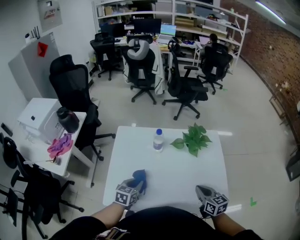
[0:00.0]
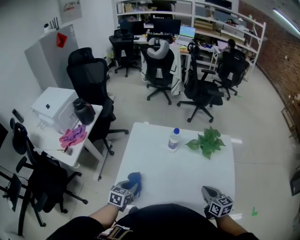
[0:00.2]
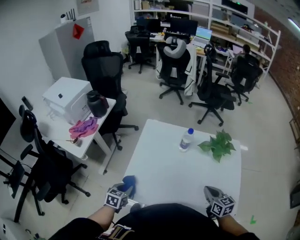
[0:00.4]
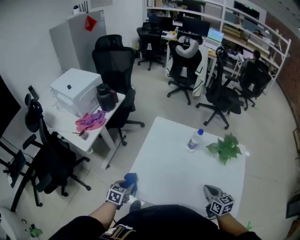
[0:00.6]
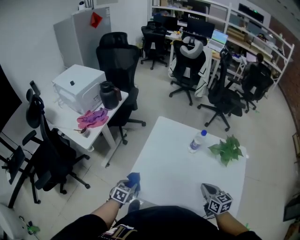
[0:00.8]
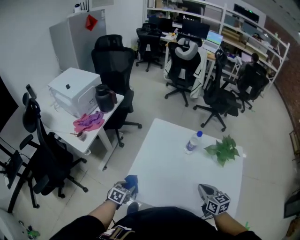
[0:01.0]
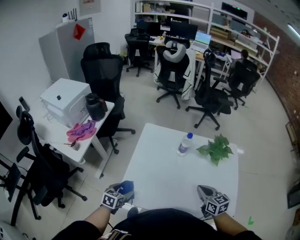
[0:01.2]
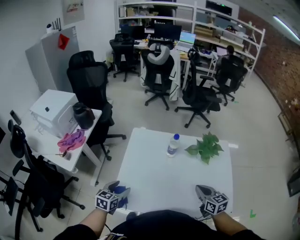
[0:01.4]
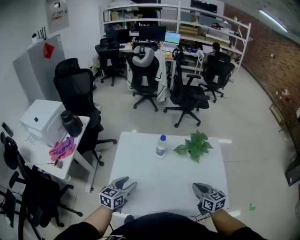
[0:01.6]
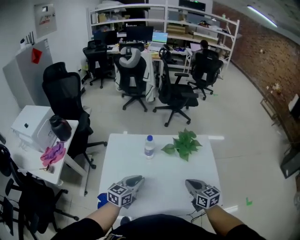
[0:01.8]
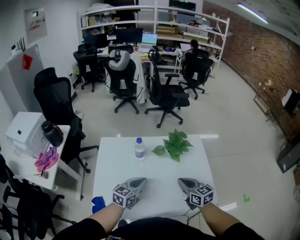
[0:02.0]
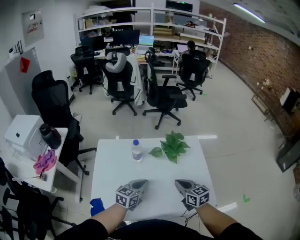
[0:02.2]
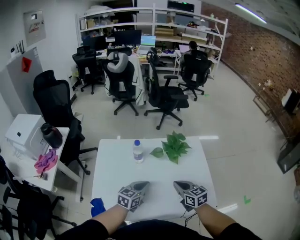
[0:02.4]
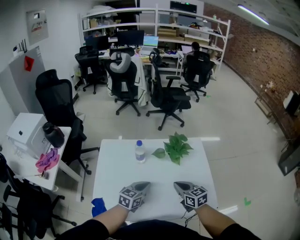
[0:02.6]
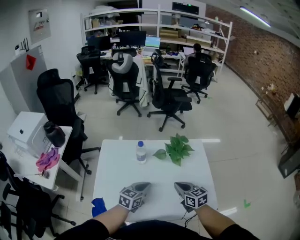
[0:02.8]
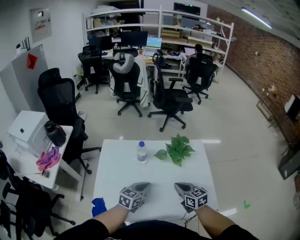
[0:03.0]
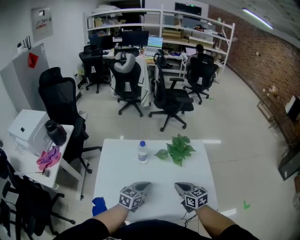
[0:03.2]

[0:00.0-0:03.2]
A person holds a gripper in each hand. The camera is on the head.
0:00.0 to 0:01.6: The right gripper moves roughly 15 cm to the left and comes back. The left gripper travels upward by about 5 cm, moves some 20 cm to the left and comes back, and opens its fingers.
0:01.6 to 0:03.2: The left gripper heads to the right, covering some 20 cm, and closes.

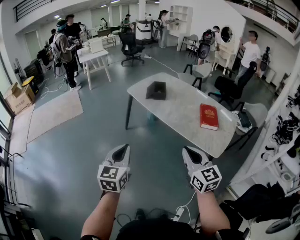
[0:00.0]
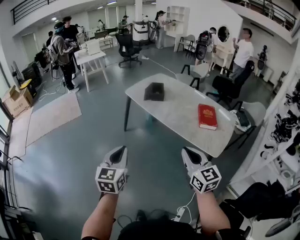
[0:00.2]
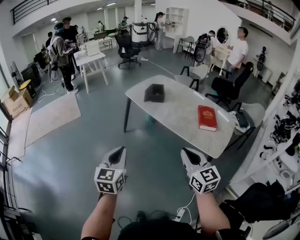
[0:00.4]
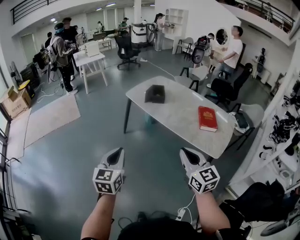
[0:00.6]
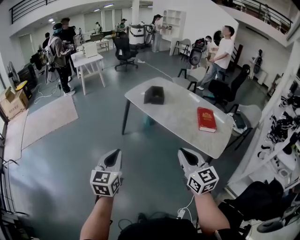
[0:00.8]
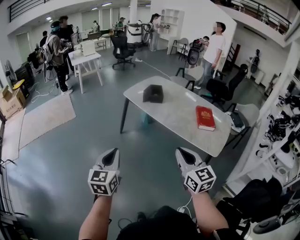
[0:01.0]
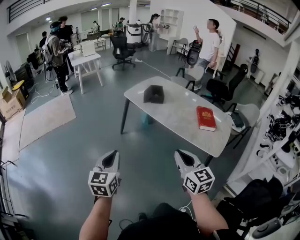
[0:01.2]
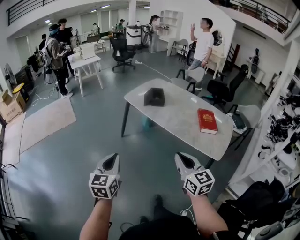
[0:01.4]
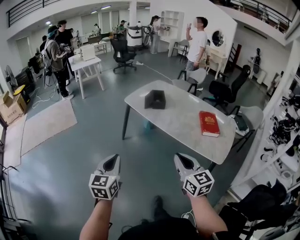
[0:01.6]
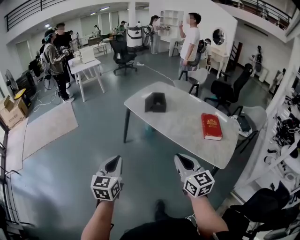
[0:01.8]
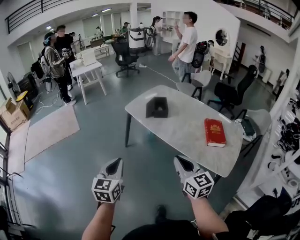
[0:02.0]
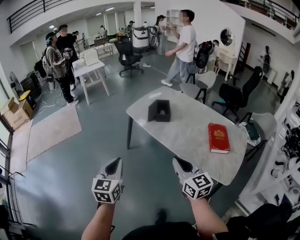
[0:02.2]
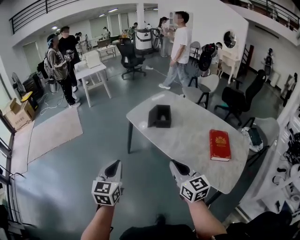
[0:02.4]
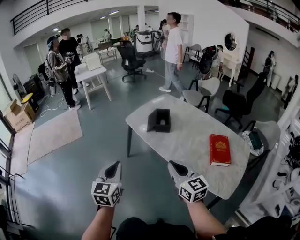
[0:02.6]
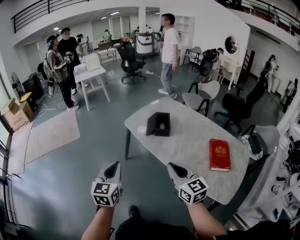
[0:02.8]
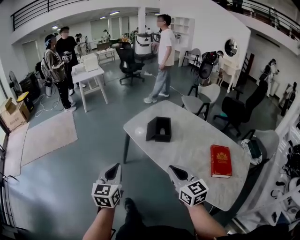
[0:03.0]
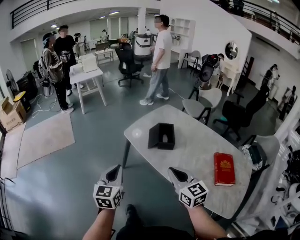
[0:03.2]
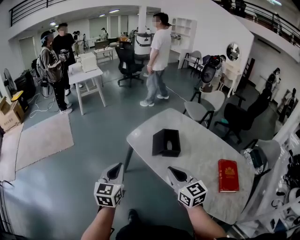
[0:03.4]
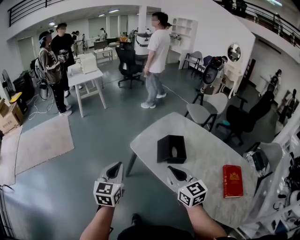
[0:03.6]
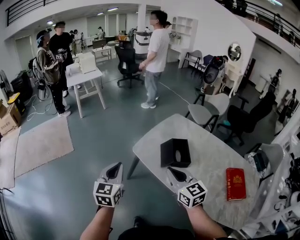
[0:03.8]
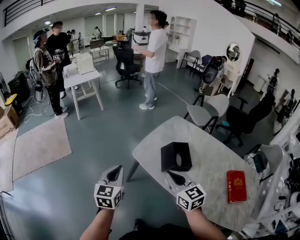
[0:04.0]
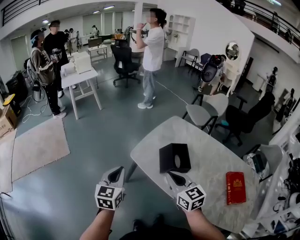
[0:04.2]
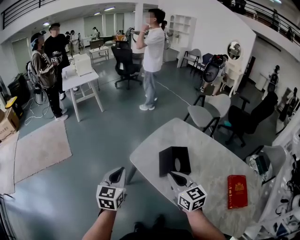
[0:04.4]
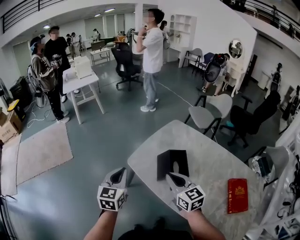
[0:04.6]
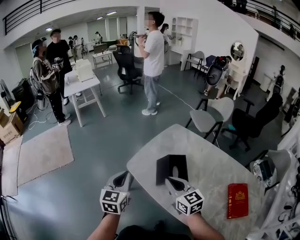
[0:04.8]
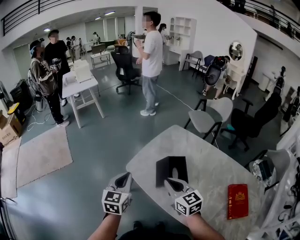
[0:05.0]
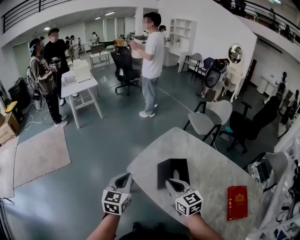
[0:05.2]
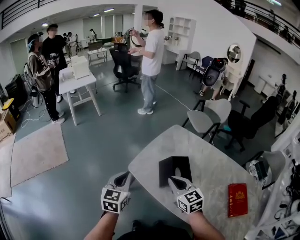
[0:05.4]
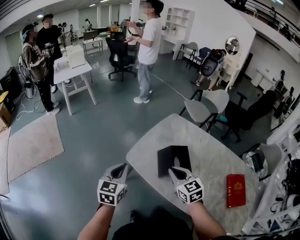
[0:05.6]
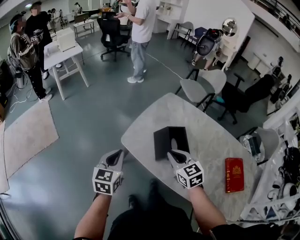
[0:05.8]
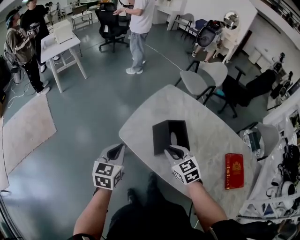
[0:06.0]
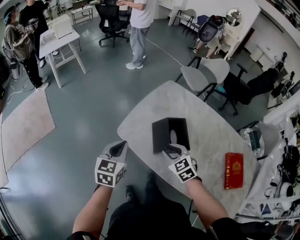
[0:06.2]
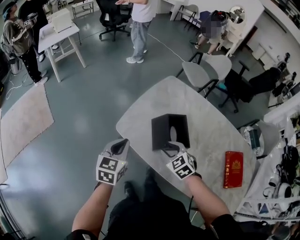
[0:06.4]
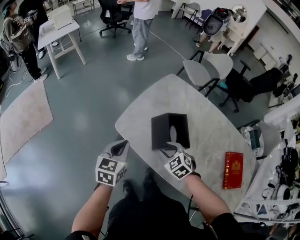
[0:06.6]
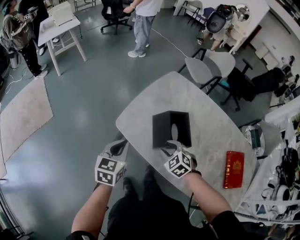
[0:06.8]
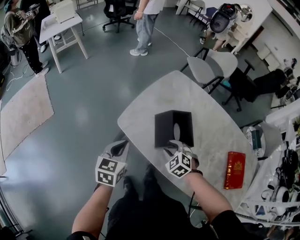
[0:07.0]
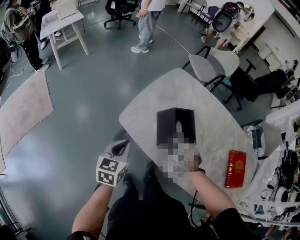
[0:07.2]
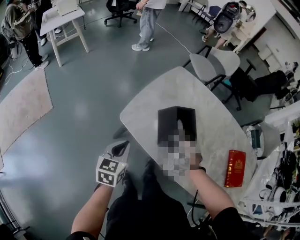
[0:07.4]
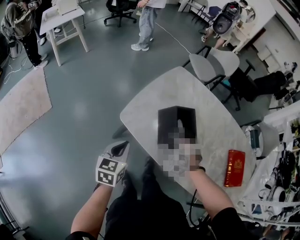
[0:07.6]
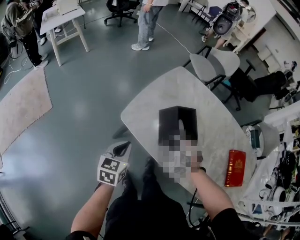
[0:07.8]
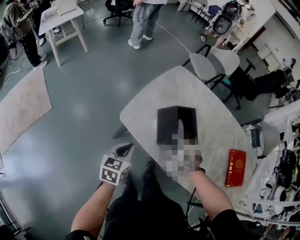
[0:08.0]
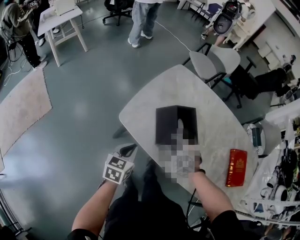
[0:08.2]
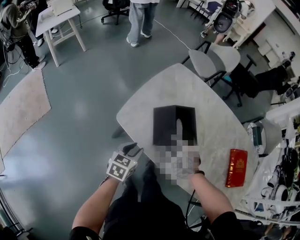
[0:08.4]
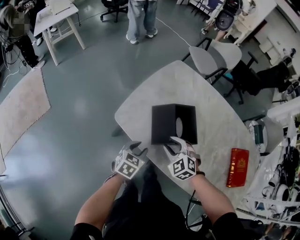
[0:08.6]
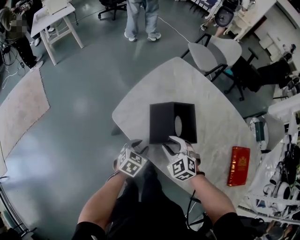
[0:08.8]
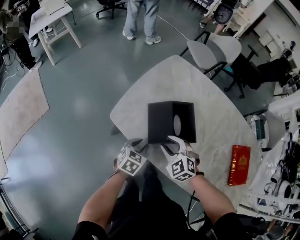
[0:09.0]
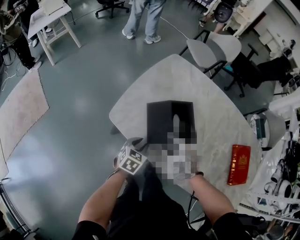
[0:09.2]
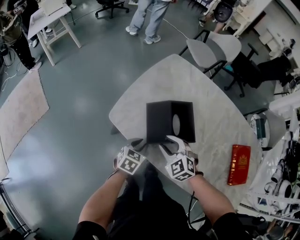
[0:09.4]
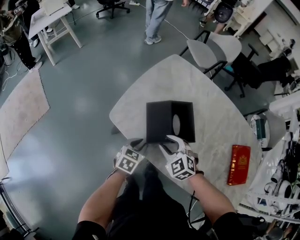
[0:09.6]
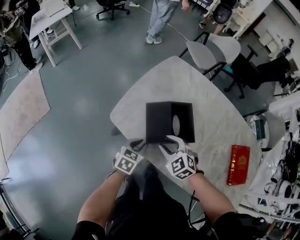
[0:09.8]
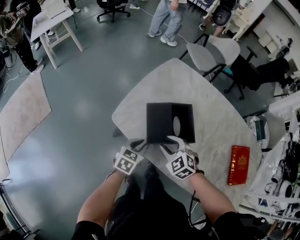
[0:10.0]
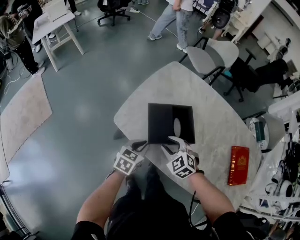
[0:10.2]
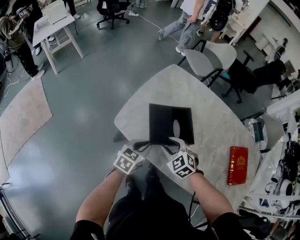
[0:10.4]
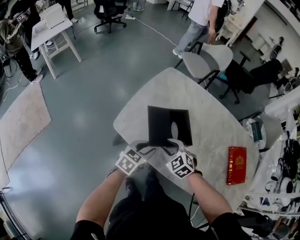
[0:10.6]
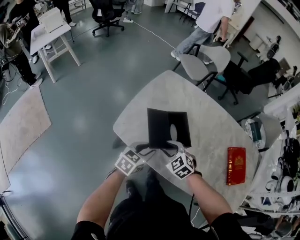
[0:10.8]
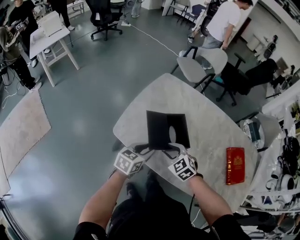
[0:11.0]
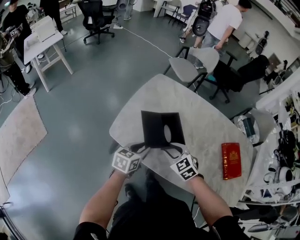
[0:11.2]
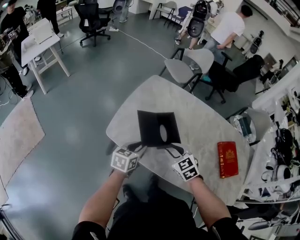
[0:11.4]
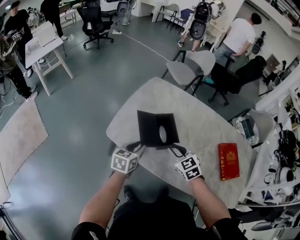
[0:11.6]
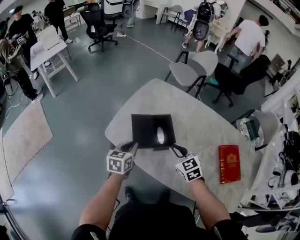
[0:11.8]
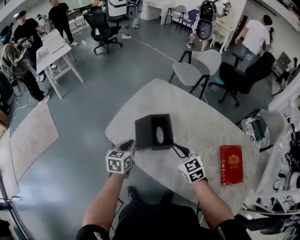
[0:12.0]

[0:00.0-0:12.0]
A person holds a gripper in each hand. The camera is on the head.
0:00.0 to 0:01.6: The grippers both shift to the left and forward by some 10 cm.
0:01.6 to 0:03.0: The two grippers go about 30 cm forward.
0:03.0 to 0:04.4: The two grippers go some 35 cm forward.
0:04.4 to 0:06.0: The left gripper moves forward and downward, some 15 cm. The right gripper heads downward and forward, covering about 15 cm, and changes its angle by about 20 degrees.
0:06.0 to 0:07.6: The left gripper moves downward, approximately 10 cm. The right gripper shifts approximately 15 cm downward, rotates around the line of its fingers by about 50 degrees, counterclockwise from behind, and opens up.
0:07.6 to 0:09.0: The right gripper swivels approximately 30 degrees, while the left gripper goes roughly 20 cm downward, to the right and forward, changes its angle by some 30 degrees, and opens its fingers.
0:09.0 to 0:10.4: The left gripper is displaced upward by some 10 cm, and closes up.
0:10.4 to 0:12.0: The left gripper is displaced upward by some 10 cm, swivels roughly 30 degrees, and opens and closes again. The right gripper heads to the right and upward, covering approximately 20 cm, rotates some 30 degrees, and closes its fingers.

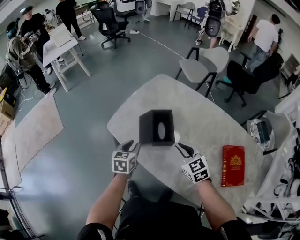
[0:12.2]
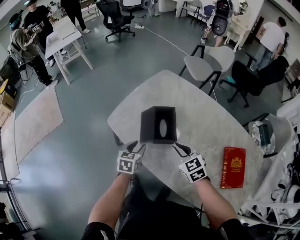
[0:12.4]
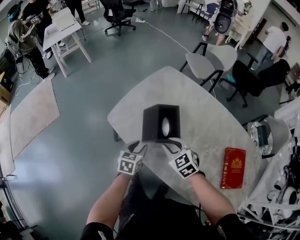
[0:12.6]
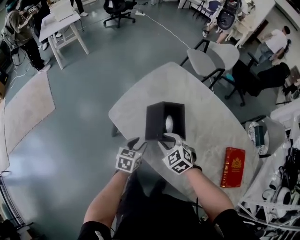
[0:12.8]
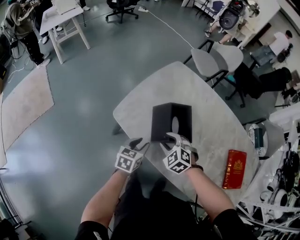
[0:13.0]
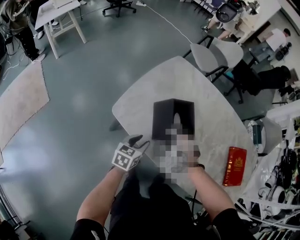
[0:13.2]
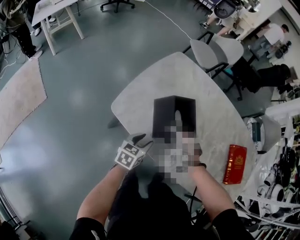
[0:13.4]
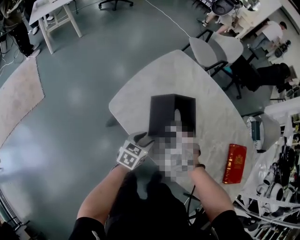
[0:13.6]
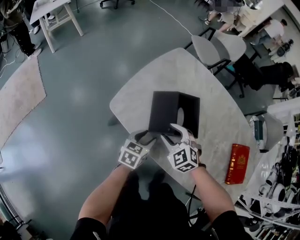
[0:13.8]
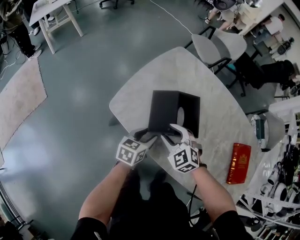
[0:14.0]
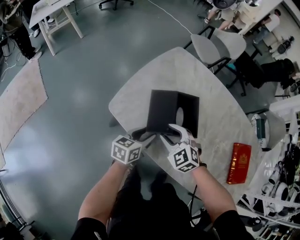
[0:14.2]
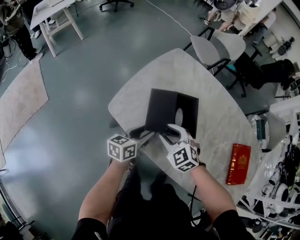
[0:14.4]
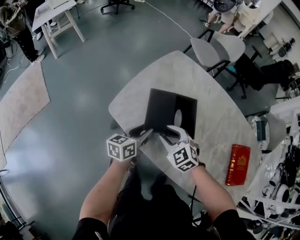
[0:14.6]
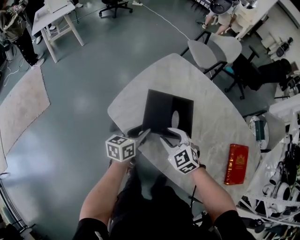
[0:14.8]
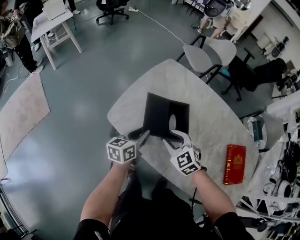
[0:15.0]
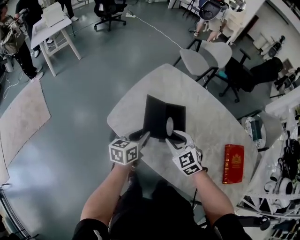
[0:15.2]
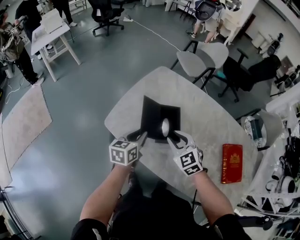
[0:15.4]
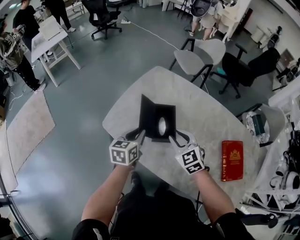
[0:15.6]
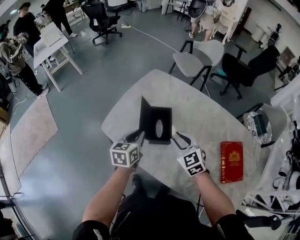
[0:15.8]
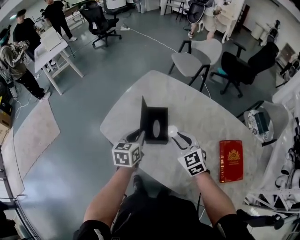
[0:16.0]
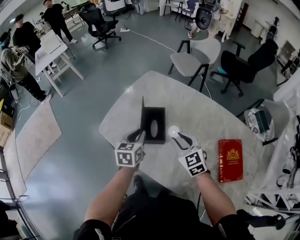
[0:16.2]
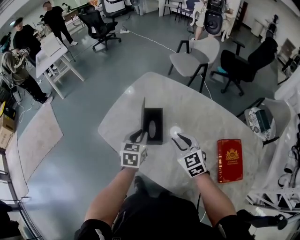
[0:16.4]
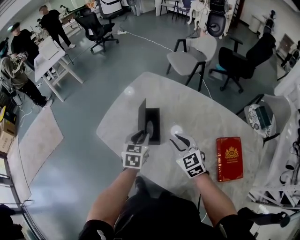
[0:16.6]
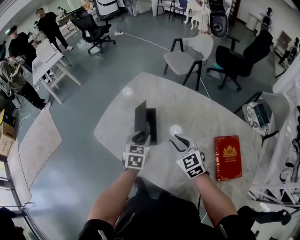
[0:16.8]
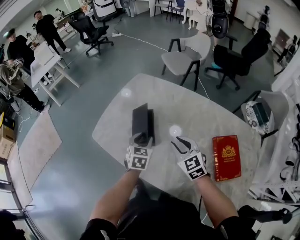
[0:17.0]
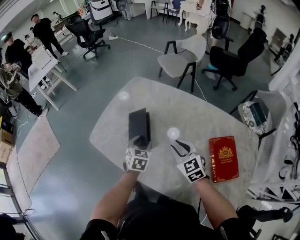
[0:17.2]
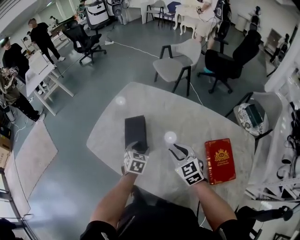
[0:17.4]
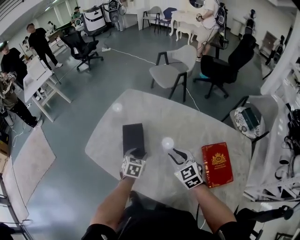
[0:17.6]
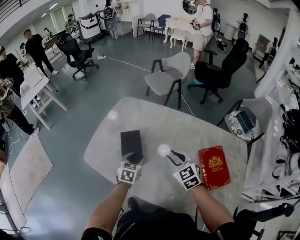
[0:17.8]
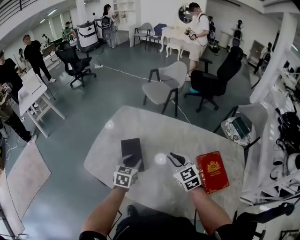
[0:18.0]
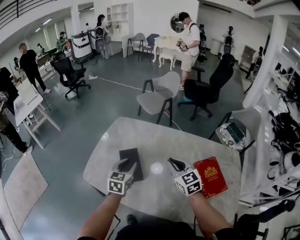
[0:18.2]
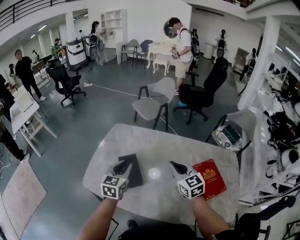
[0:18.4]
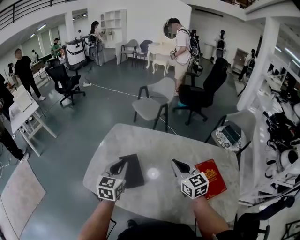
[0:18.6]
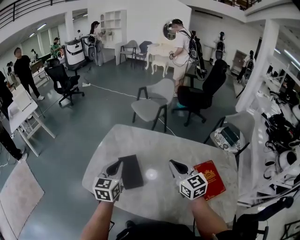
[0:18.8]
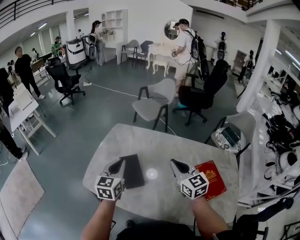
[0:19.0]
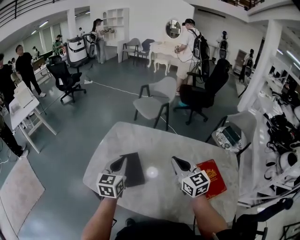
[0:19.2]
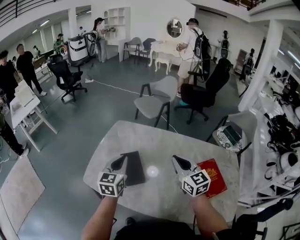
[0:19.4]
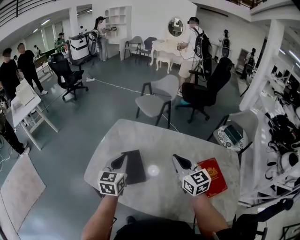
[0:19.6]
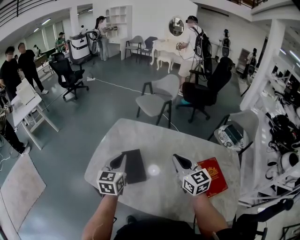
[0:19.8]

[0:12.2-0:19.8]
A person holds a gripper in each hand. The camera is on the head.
0:12.2 to 0:13.8: The left gripper moves downward, some 10 cm, and swivels about 20 degrees; the right gripper heads to the left and downward, covering roughly 20 cm, swivels some 30 degrees, and opens its fingers.
0:13.8 to 0:15.2: The right gripper goes approximately 10 cm upward and to the right. Meanwhile the left gripper moves upward, roughly 15 cm, and closes.
0:15.2 to 0:16.8: Both grippers move to the right, approximately 20 cm. The left gripper swivels approximately 40 degrees.
0:16.8 to 0:18.2: The right gripper shifts approximately 10 cm upward and to the right, while the left gripper shifts roughly 10 cm upward, and opens, then closes again.
0:18.2 to 0:19.8: The left gripper moves upward and to the left, some 10 cm, and closes. The right gripper is displaced upward by some 5 cm.
